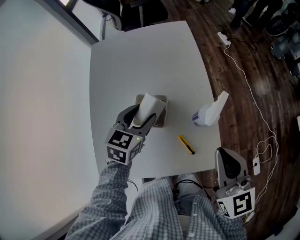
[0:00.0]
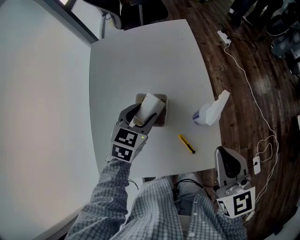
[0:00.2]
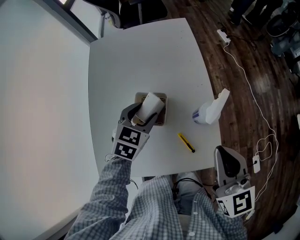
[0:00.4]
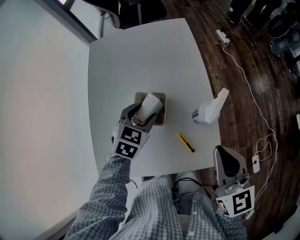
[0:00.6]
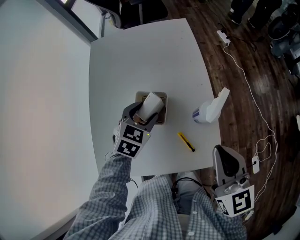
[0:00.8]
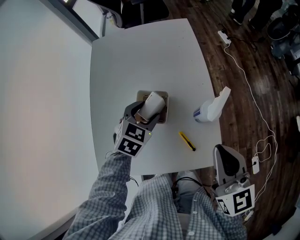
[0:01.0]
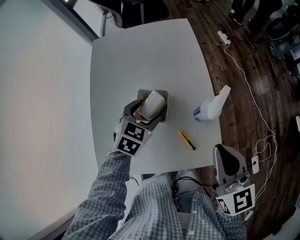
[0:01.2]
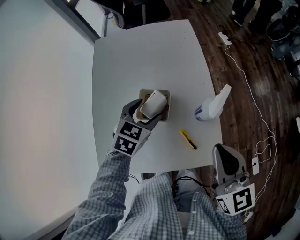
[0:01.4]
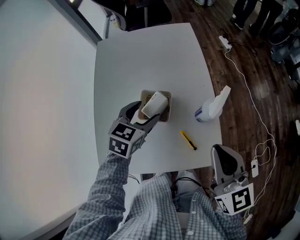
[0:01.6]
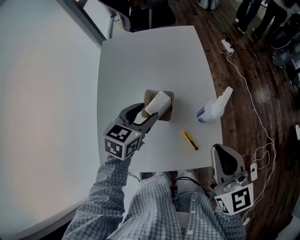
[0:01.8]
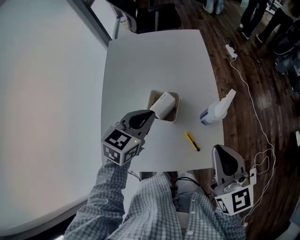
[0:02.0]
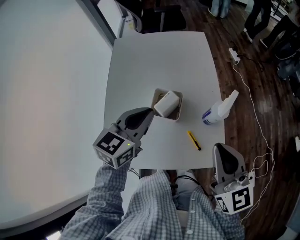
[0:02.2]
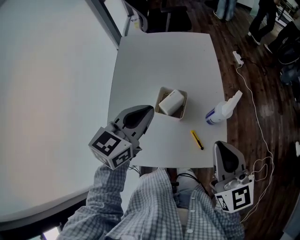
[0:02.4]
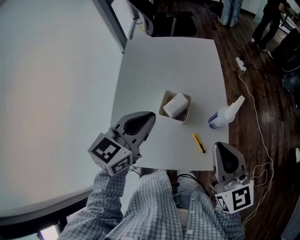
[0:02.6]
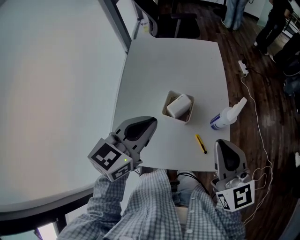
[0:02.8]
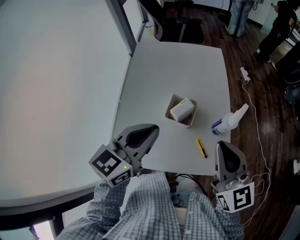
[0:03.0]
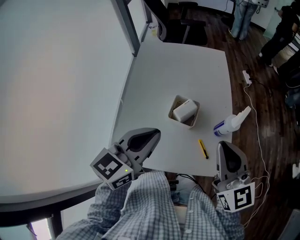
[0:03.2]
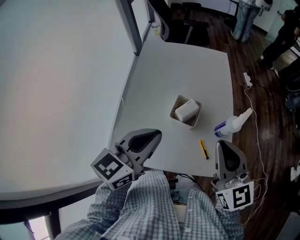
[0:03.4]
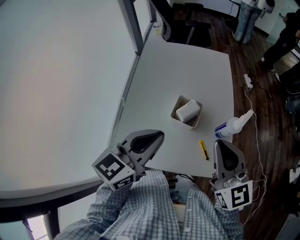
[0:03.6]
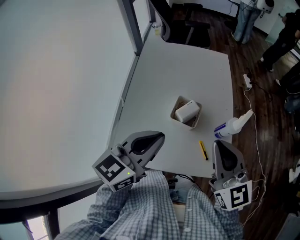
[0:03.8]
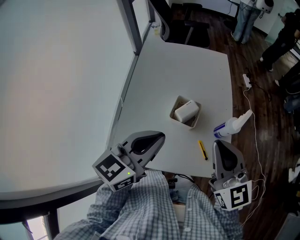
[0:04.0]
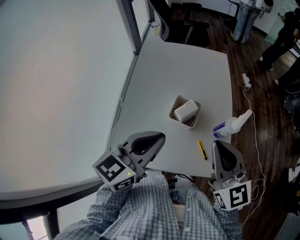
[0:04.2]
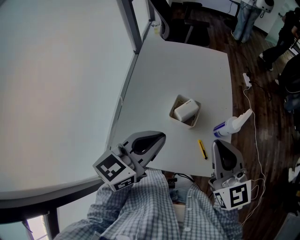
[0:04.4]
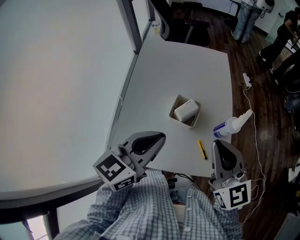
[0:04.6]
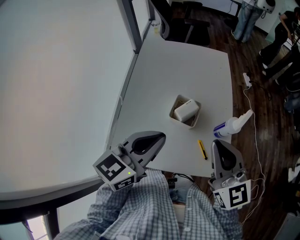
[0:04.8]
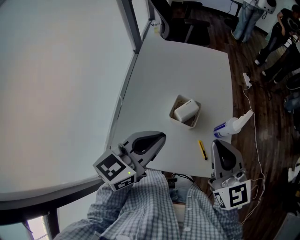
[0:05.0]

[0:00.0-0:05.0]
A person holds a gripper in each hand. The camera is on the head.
0:00.0 to 0:01.6: The grippers stay close to where they were, moving slightly.
0:01.6 to 0:03.4: The right gripper moves to the left, some 5 cm; the left gripper heads upward and backward, covering approximately 20 cm, turns by approximately 30 degrees, and closes up.
0:03.4 to 0:05.0: The grippers stay close to where they were, moving slightly.

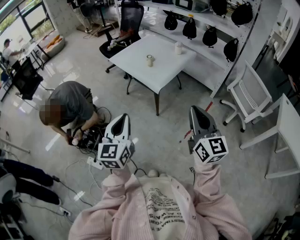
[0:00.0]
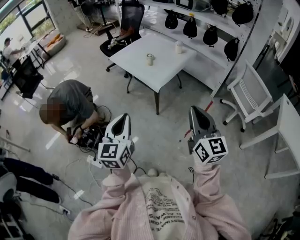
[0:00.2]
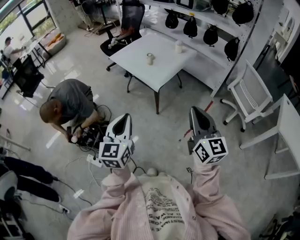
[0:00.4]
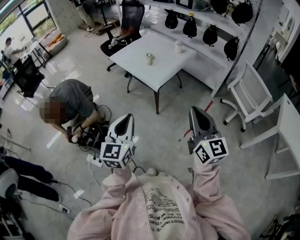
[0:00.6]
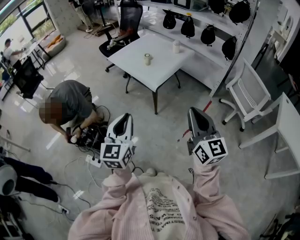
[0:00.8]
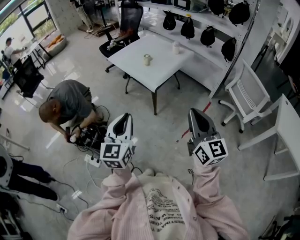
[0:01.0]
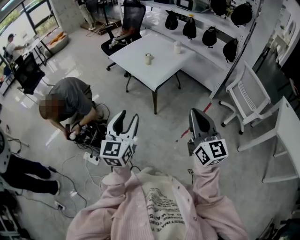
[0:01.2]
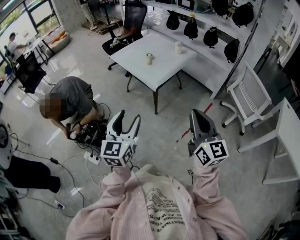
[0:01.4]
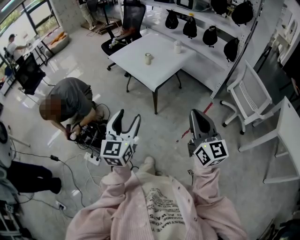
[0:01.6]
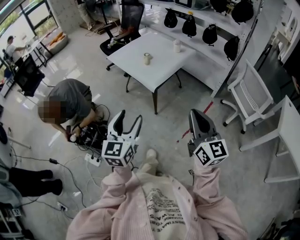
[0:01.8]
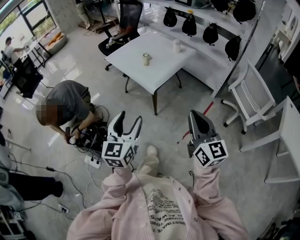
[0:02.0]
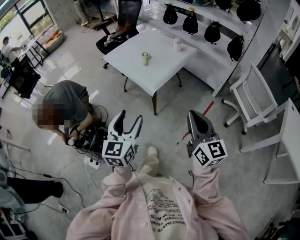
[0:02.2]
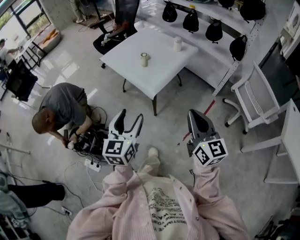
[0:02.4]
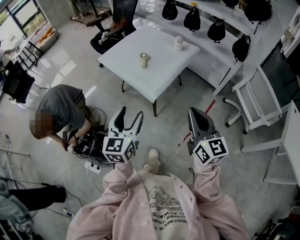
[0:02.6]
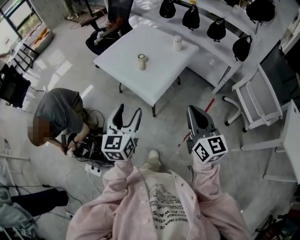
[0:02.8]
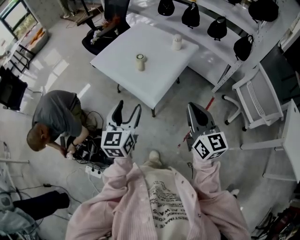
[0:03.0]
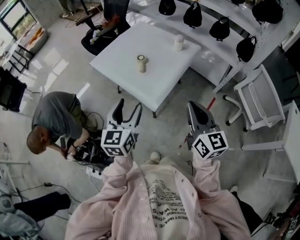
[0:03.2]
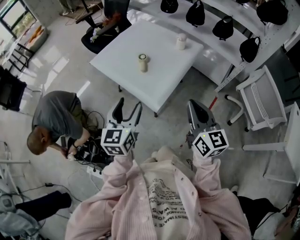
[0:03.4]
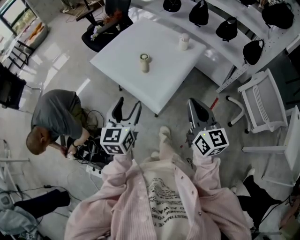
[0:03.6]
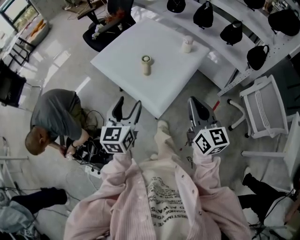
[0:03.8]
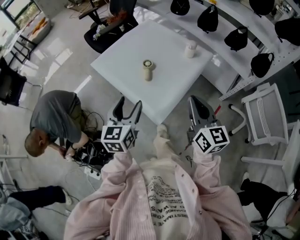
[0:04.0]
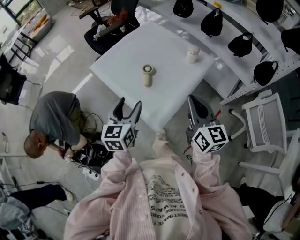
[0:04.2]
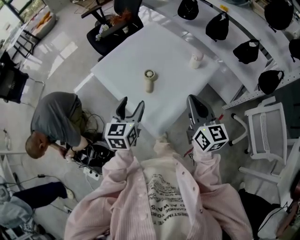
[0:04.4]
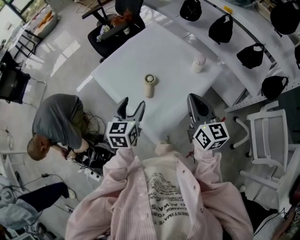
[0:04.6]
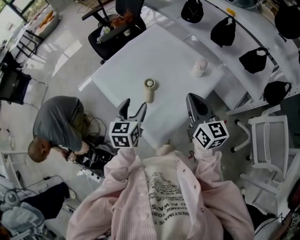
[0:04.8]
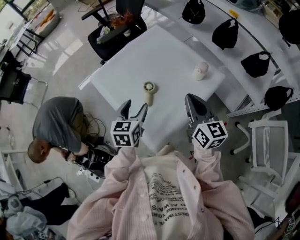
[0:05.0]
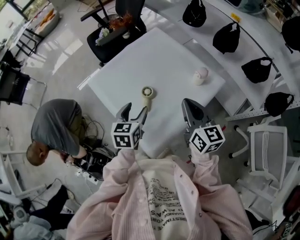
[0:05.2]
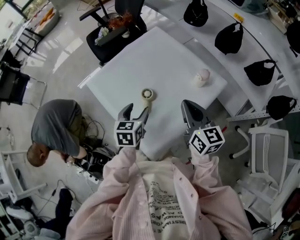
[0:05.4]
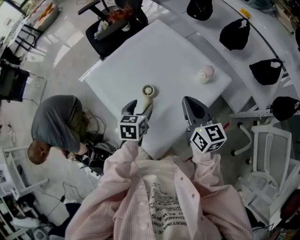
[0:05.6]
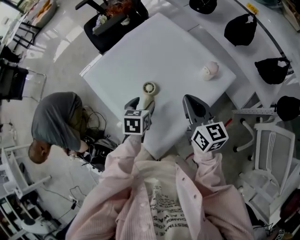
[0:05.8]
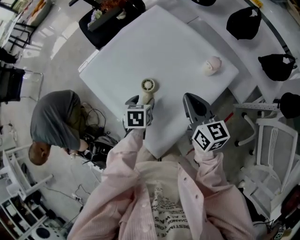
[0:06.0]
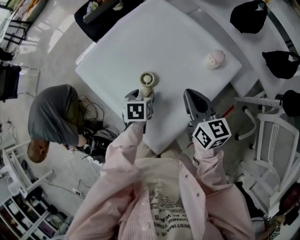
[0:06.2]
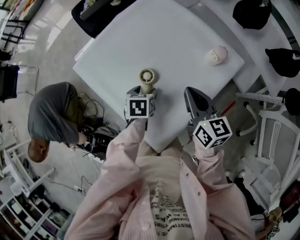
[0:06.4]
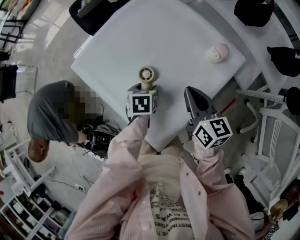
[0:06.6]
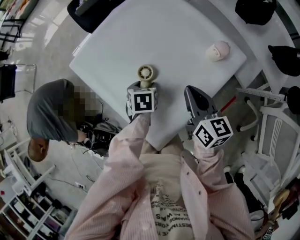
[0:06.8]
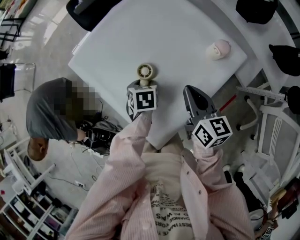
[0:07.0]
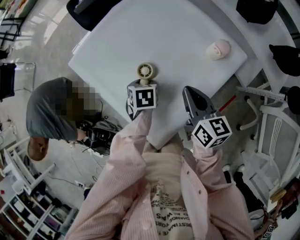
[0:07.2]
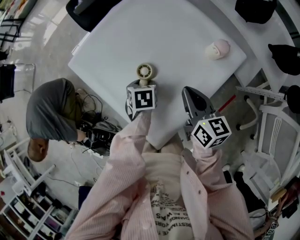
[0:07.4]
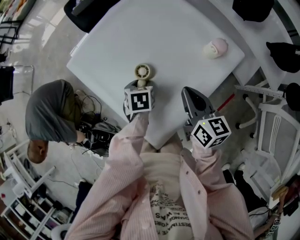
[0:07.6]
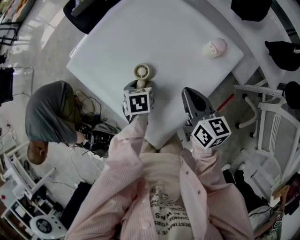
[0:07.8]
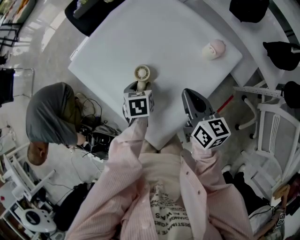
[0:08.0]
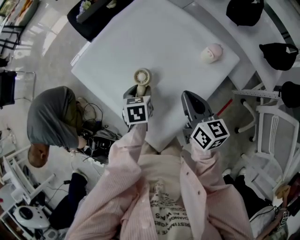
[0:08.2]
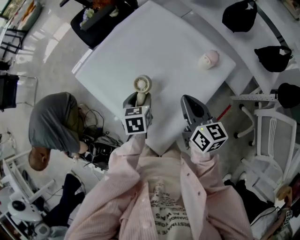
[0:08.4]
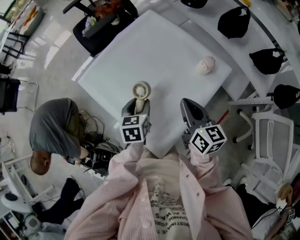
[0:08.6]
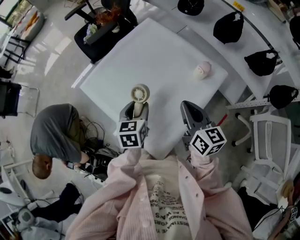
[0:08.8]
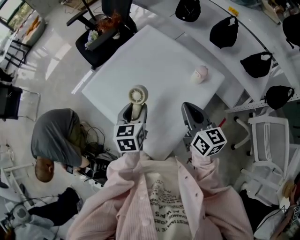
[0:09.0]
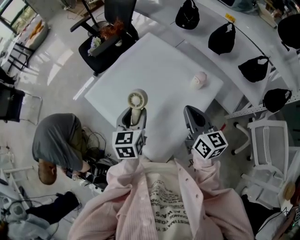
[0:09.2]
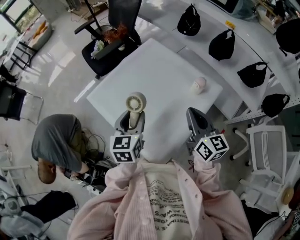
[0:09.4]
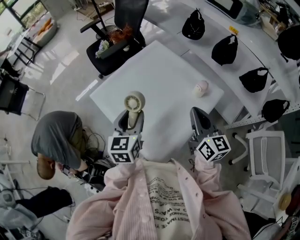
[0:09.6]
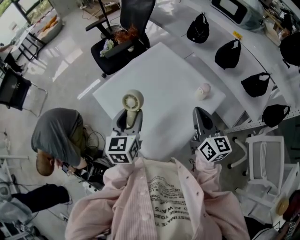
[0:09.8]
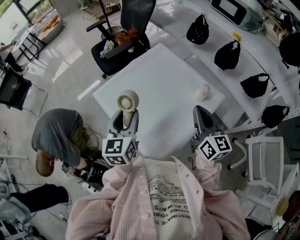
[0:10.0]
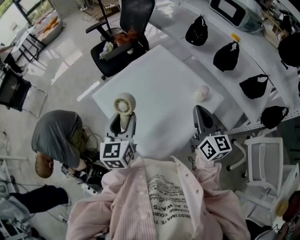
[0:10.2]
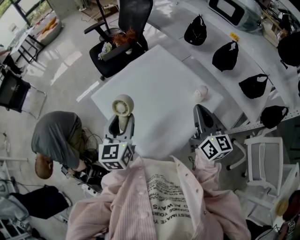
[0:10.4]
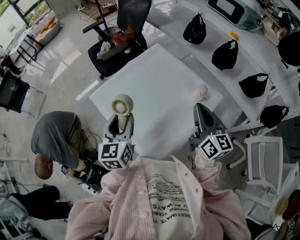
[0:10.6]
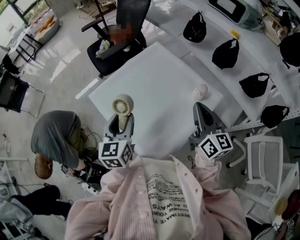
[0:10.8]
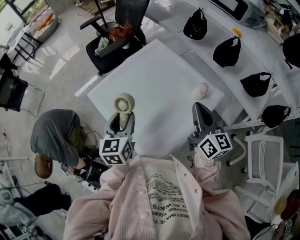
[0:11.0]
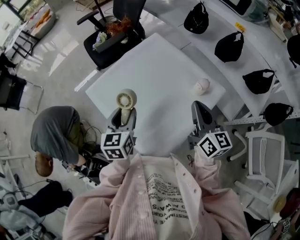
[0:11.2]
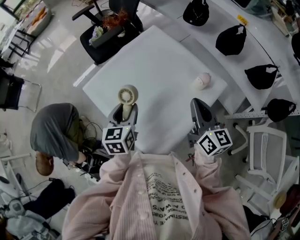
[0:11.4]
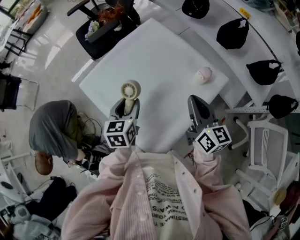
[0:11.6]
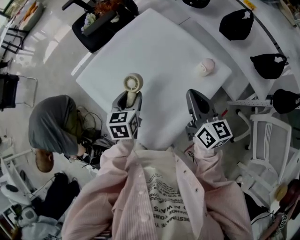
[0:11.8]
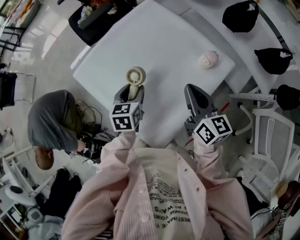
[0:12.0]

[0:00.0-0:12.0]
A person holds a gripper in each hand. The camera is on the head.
0:00.0 to 0:01.6: The grippers both shift to the right by about 5 cm. The left gripper opens.
0:01.6 to 0:03.0: The pair of grippers is taken forward, about 40 cm.
0:03.0 to 0:04.4: The grippers both shift forward by about 35 cm.
0:04.4 to 0:06.0: The right gripper shifts about 30 cm forward and downward, while the left gripper moves downward and forward, roughly 30 cm, and points its fingers about 40 degrees further downward.
0:06.0 to 0:07.6: The two grippers go about 5 cm downward.
0:07.6 to 0:09.0: The right gripper heads upward, covering approximately 15 cm. Meanwhile the left gripper shifts about 25 cm upward, and tips its fingers upward by some 30 degrees.
0:09.0 to 0:10.4: The right gripper heads upward, covering about 10 cm. Meanwhile the left gripper travels upward and to the left by about 15 cm.
0:10.4 to 0:12.0: The left gripper heads downward and forward, covering roughly 25 cm, and turns by approximately 30 degrees. Meanwhile the right gripper goes about 15 cm downward and forward.

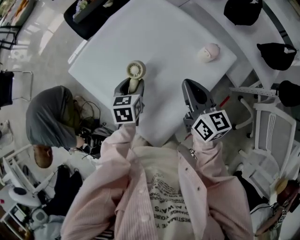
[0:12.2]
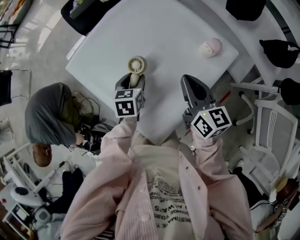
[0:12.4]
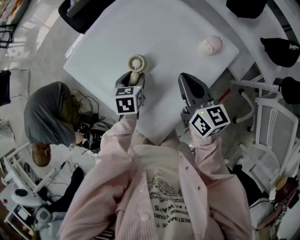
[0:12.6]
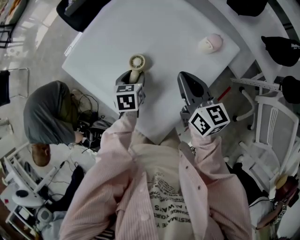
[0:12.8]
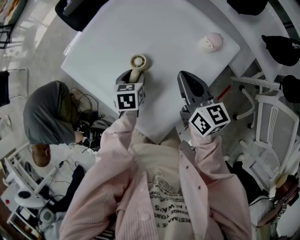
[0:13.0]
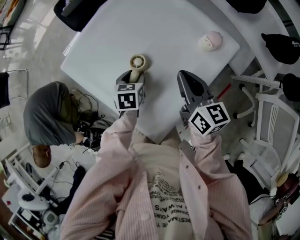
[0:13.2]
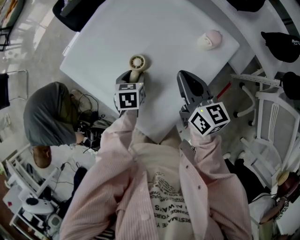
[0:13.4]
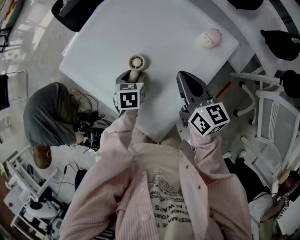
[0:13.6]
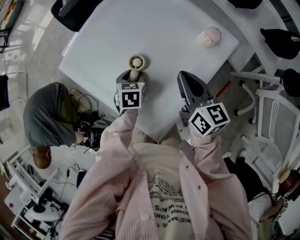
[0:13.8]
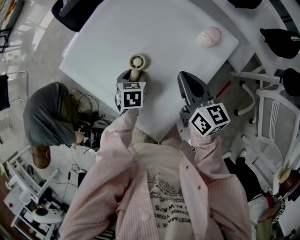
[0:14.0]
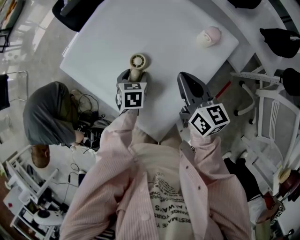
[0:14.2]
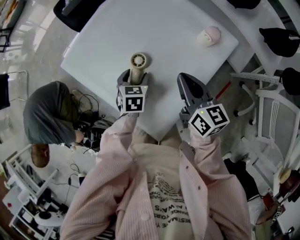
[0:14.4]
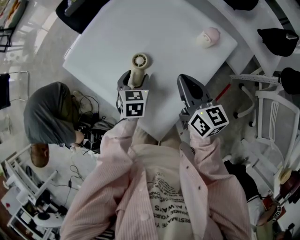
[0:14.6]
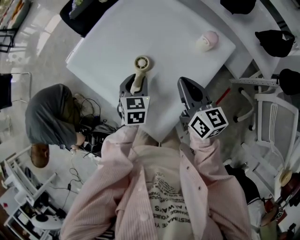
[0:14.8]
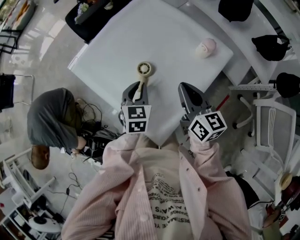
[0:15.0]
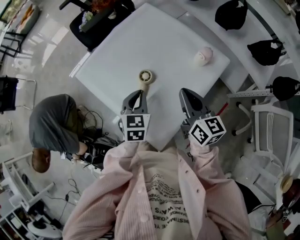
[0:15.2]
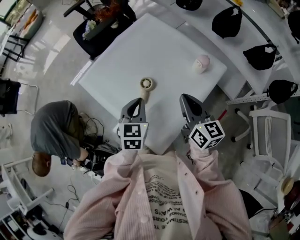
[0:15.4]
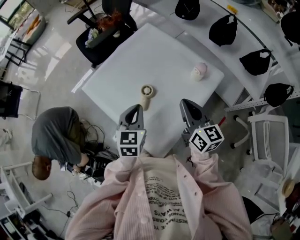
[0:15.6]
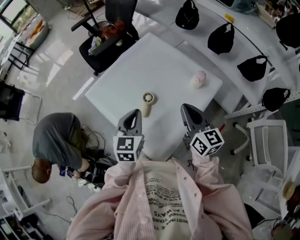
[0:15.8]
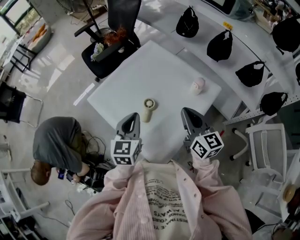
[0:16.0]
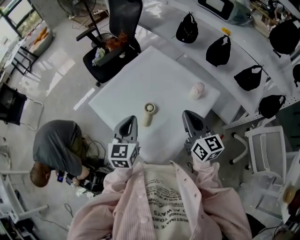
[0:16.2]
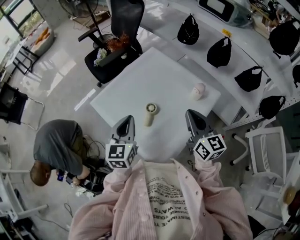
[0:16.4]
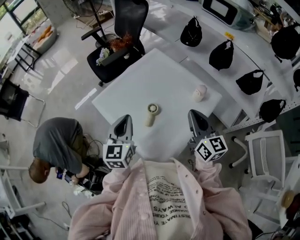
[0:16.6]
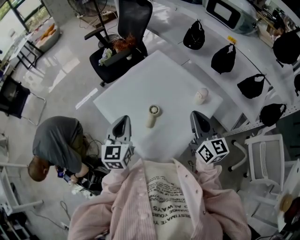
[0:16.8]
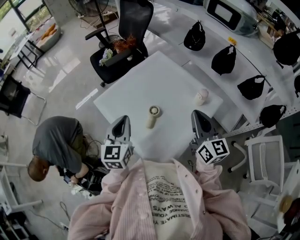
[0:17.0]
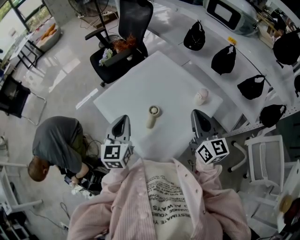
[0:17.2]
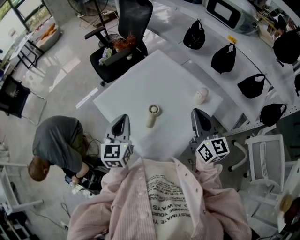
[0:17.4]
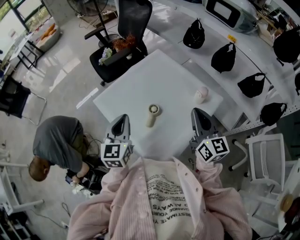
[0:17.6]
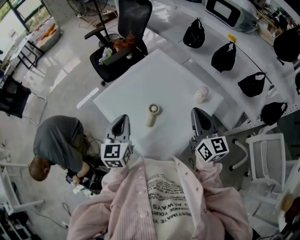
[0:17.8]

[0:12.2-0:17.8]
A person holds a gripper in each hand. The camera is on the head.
0:12.2 to 0:13.6: The left gripper goes about 10 cm downward.
0:13.6 to 0:15.0: The right gripper shifts by approximately 5 cm. Meanwhile the left gripper heads upward, covering about 10 cm, turns by approximately 20 degrees, and closes.
0:15.0 to 0:16.4: The grippers both shift upward by approximately 20 cm. The left gripper changes its angle by about 20 degrees.
0:16.4 to 0:17.8: The grippers make only small movements.

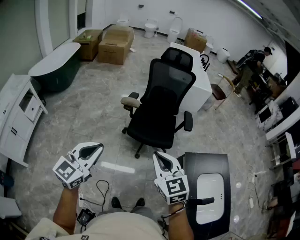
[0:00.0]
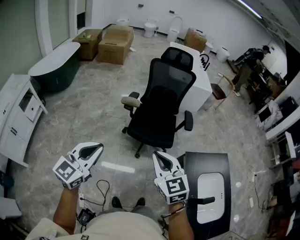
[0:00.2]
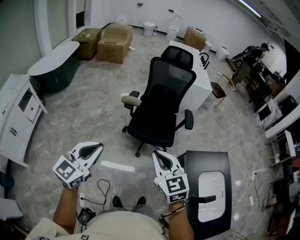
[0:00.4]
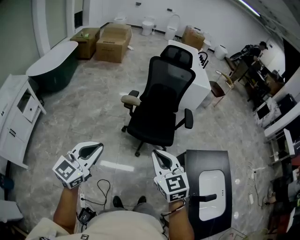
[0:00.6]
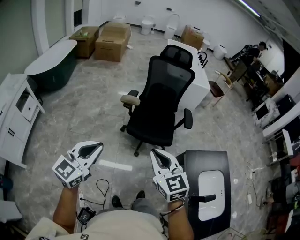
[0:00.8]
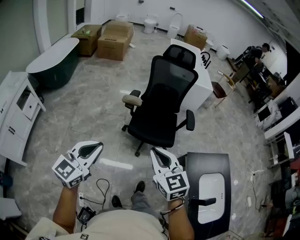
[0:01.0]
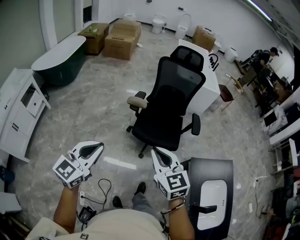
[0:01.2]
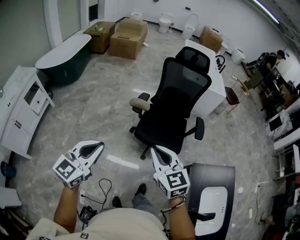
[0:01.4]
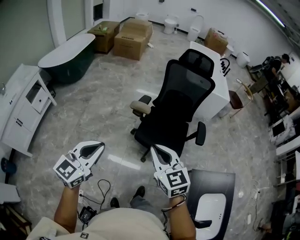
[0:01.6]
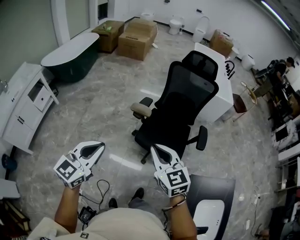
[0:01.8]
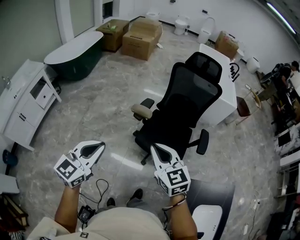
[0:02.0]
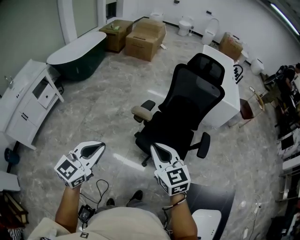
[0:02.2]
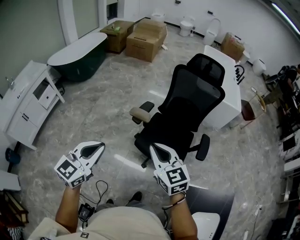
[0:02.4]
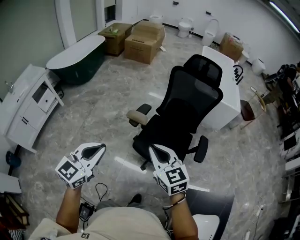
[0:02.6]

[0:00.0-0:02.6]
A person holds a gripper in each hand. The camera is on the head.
0:00.0 to 0:01.2: The left gripper changes place by some 5 cm. The right gripper heads forward, covering some 5 cm.
0:01.2 to 0:02.6: Both grippers move forward and to the right, roughly 20 cm.
